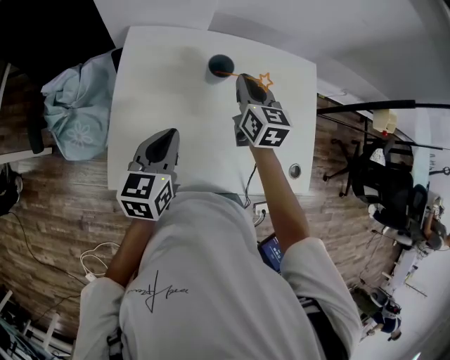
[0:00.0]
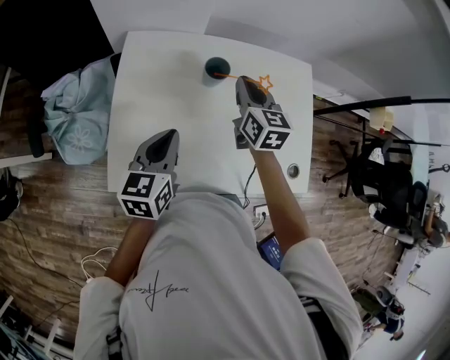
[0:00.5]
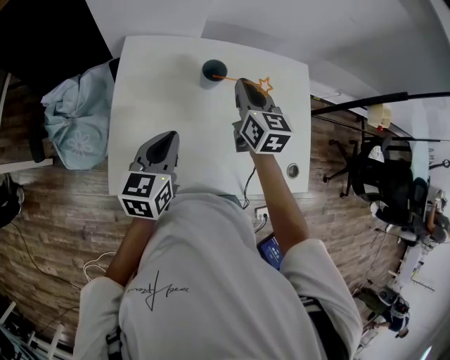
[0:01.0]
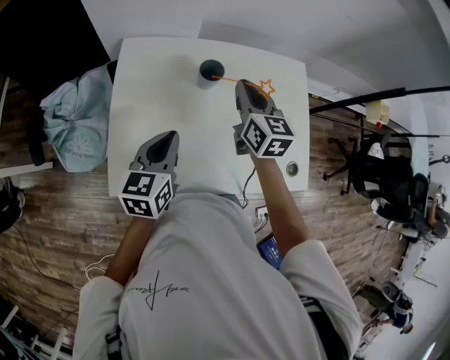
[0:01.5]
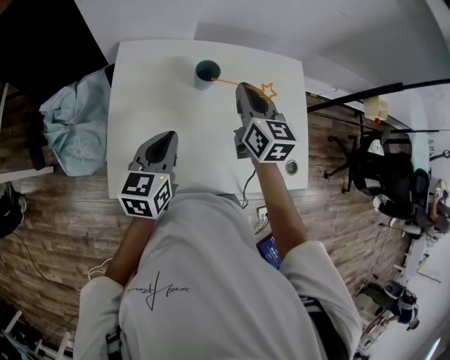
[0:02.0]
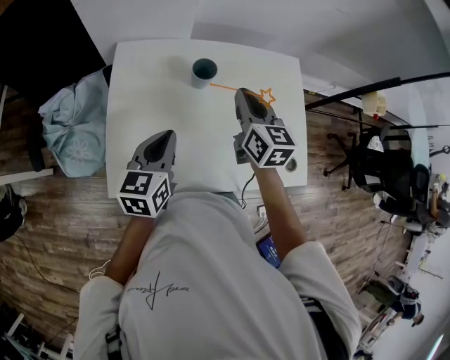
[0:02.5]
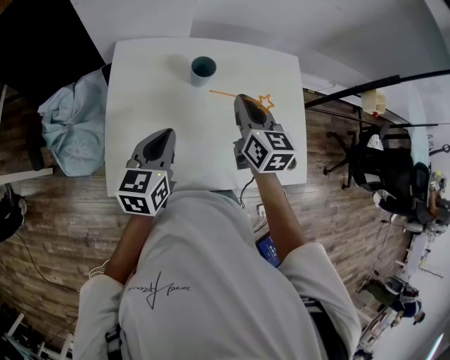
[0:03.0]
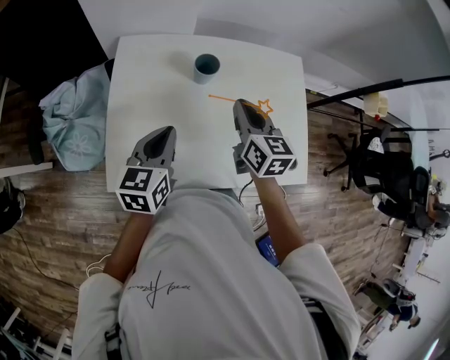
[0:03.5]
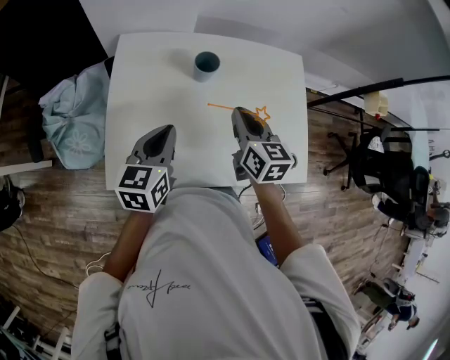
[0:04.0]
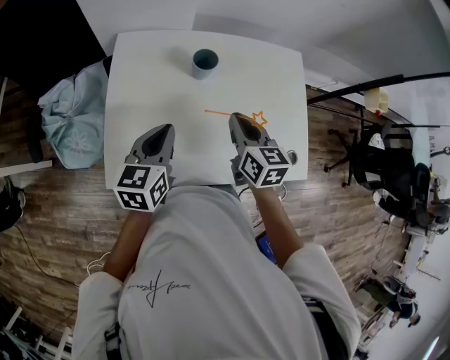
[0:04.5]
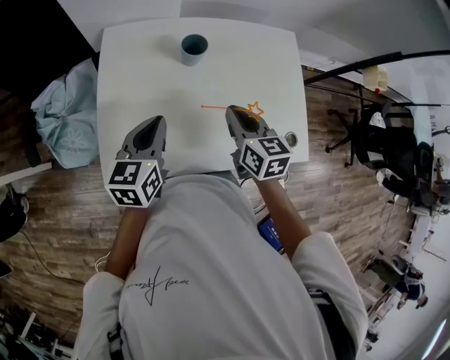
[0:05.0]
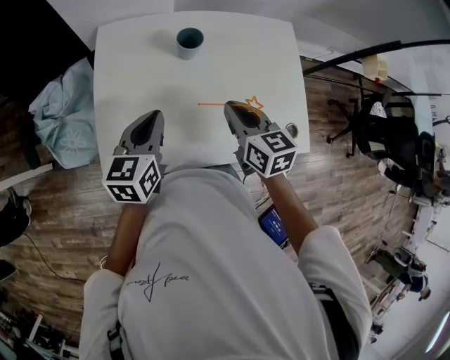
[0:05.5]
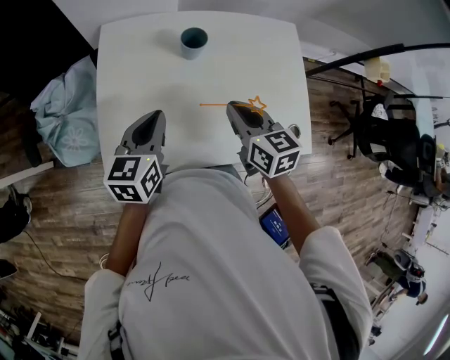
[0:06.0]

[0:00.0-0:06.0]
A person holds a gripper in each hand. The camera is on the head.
0:00.0 to 0:02.0: The right gripper moves upward, roughly 5 cm.
0:02.0 to 0:04.0: The right gripper travels backward by some 10 cm.
0:04.0 to 0:06.0: The right gripper heads backward, covering about 5 cm.

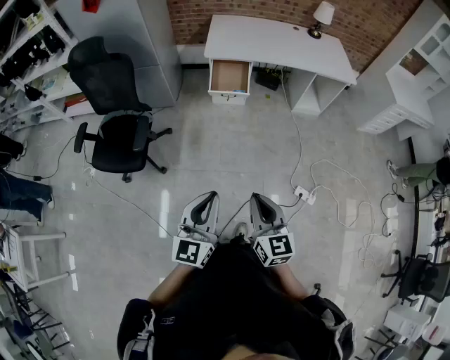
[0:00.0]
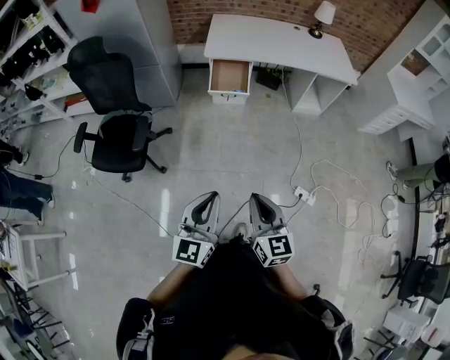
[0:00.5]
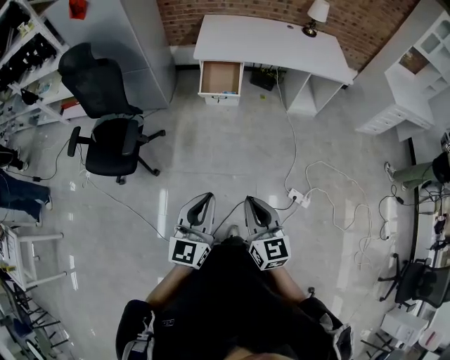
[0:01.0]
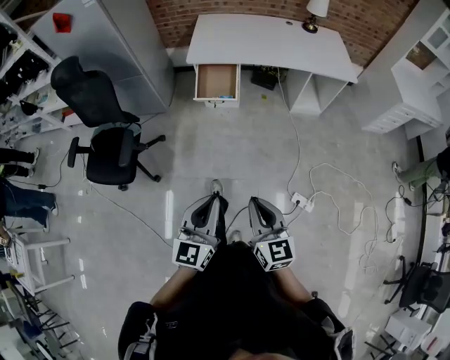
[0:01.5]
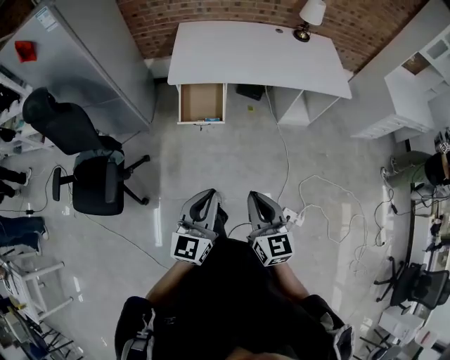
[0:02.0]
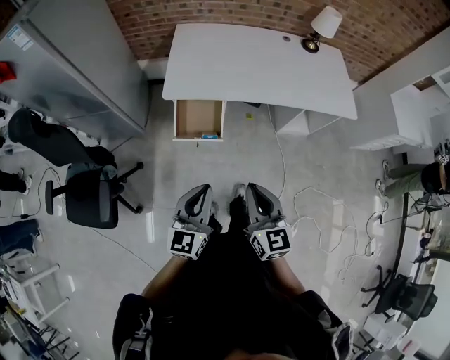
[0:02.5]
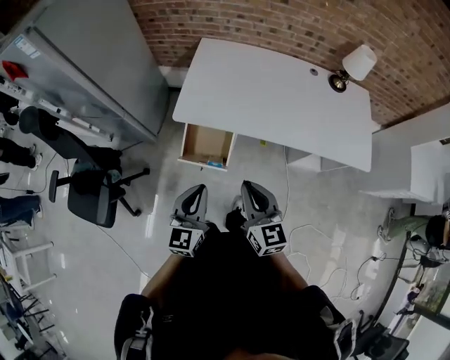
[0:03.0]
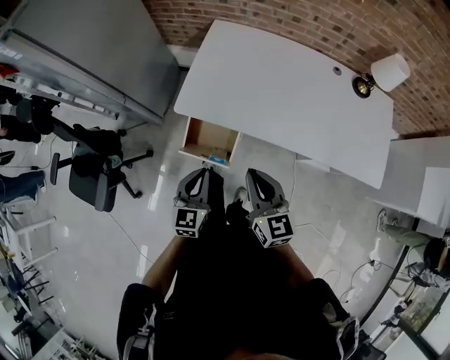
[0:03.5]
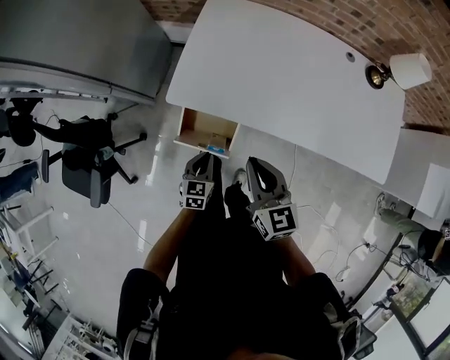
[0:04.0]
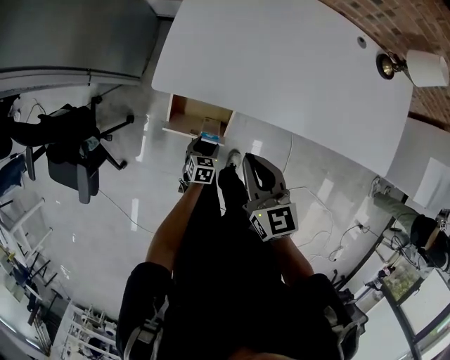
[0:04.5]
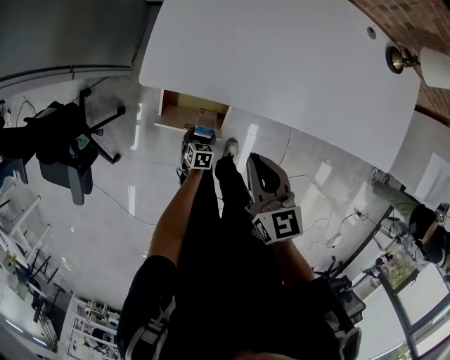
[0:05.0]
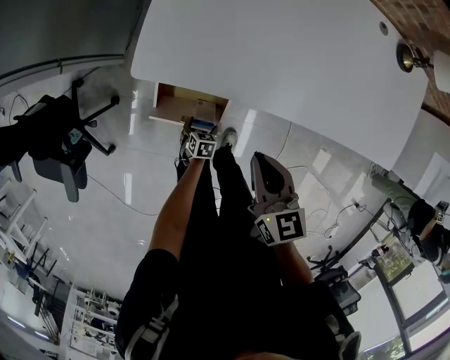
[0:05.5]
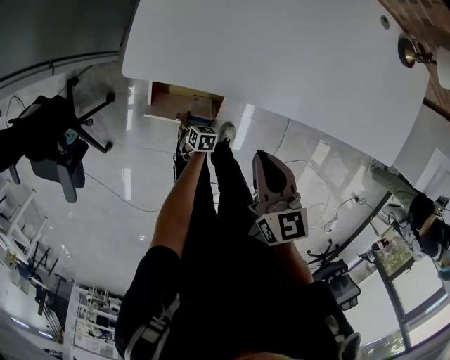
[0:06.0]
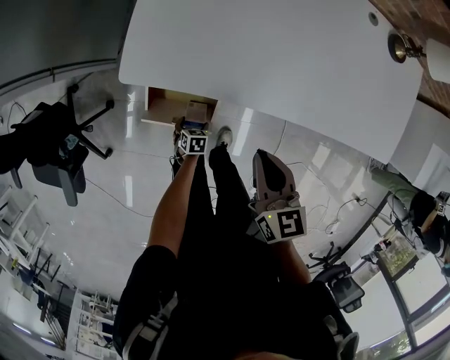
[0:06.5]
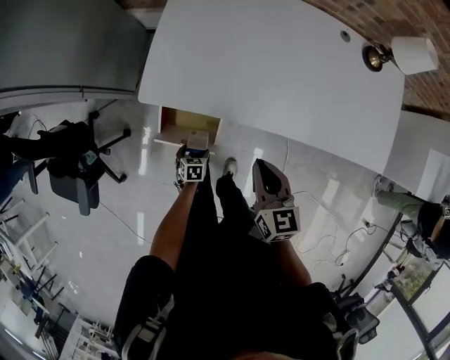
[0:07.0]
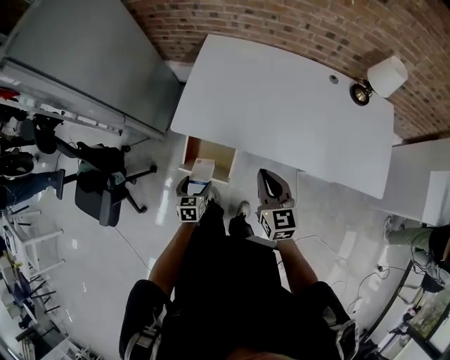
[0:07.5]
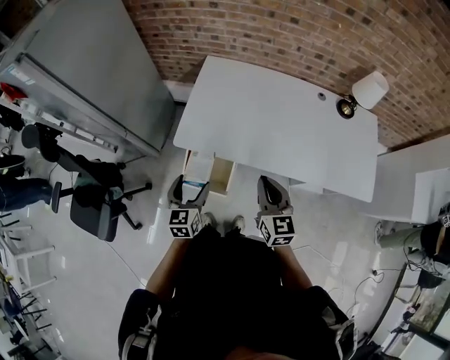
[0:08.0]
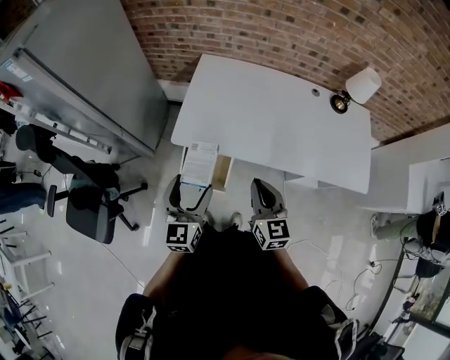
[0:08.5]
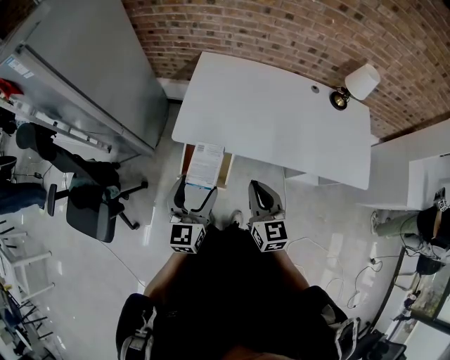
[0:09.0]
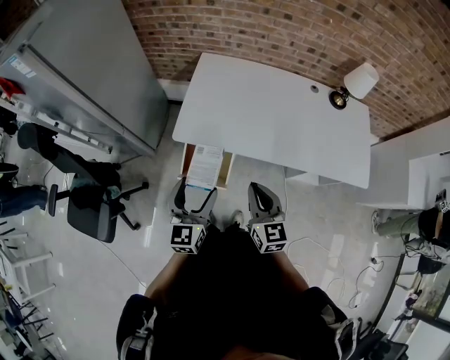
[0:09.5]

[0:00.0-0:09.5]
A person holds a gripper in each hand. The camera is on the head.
0:00.0 to 0:02.0: Both grippers travel together forward, some 30 cm.
0:02.0 to 0:04.0: The pair of grippers is taken forward, roughly 50 cm. The left gripper heads downward, covering some 30 cm, and angles its fingers downward, by approximately 30 degrees. The right gripper changes its angle by about 20 degrees.
0:04.0 to 0:05.5: The left gripper goes about 35 cm downward, points its fingers some 30 degrees further downward, and opens; the right gripper travels downward by approximately 15 cm.
0:05.5 to 0:07.5: The right gripper heads upward, covering some 15 cm. Meanwhile the left gripper goes roughly 35 cm upward, and swivels some 30 degrees.
0:07.5 to 0:09.5: The left gripper shifts roughly 30 cm upward, and tilts its fingers about 40 degrees upward. Meanwhile the right gripper shifts approximately 15 cm to the left, backward and upward.

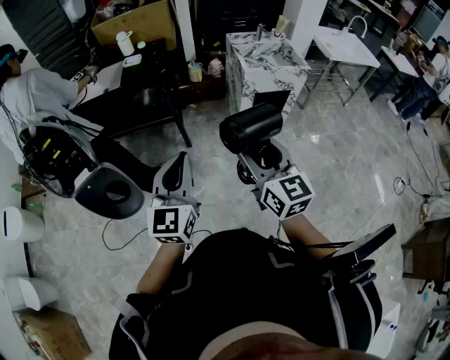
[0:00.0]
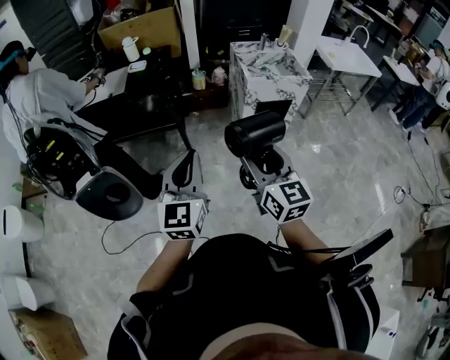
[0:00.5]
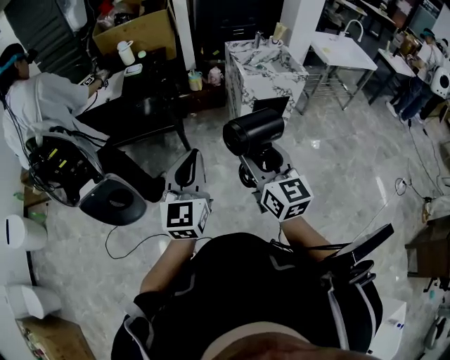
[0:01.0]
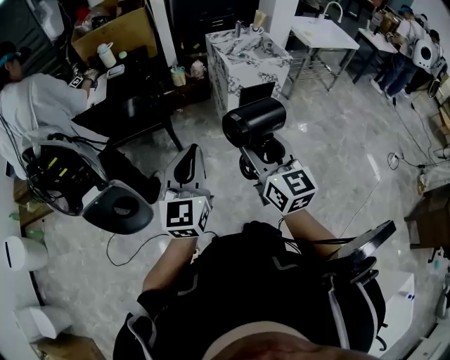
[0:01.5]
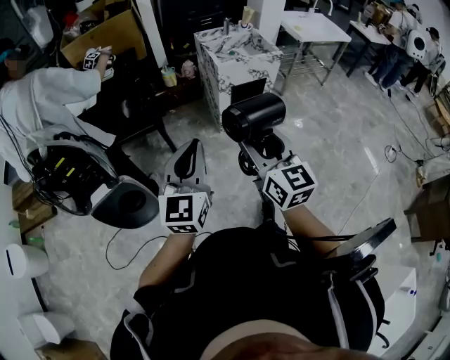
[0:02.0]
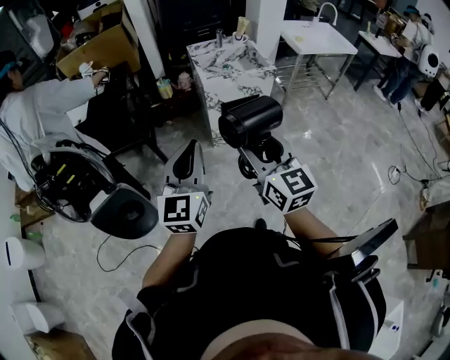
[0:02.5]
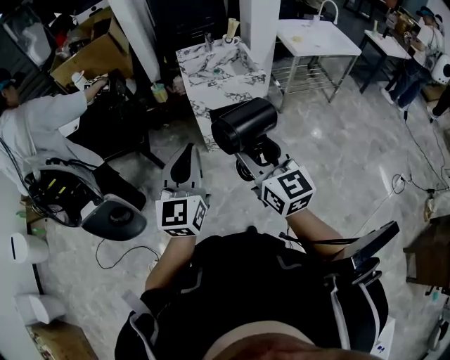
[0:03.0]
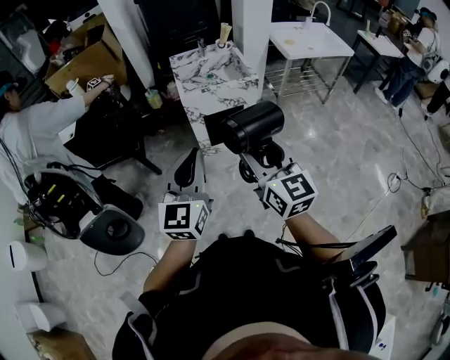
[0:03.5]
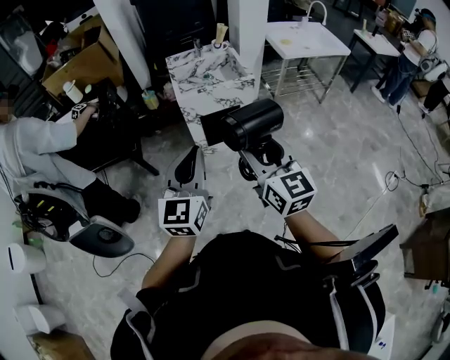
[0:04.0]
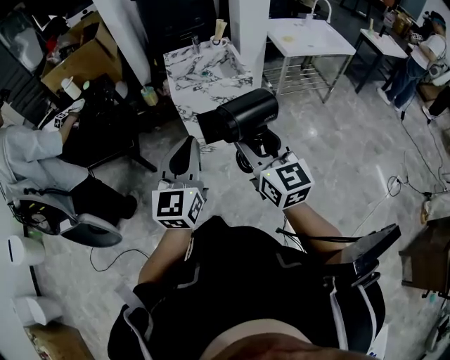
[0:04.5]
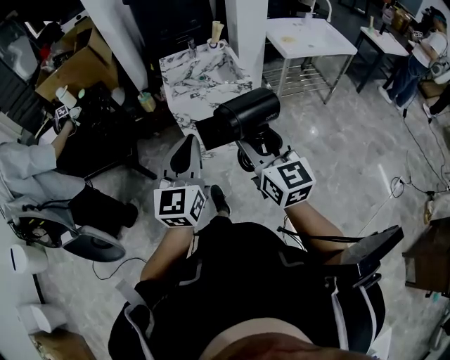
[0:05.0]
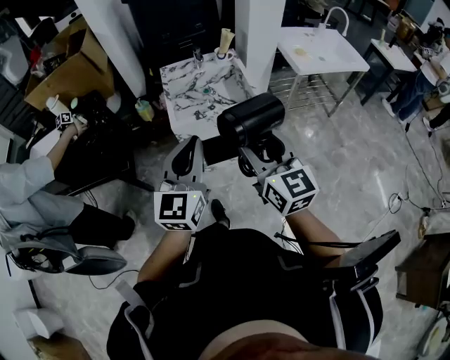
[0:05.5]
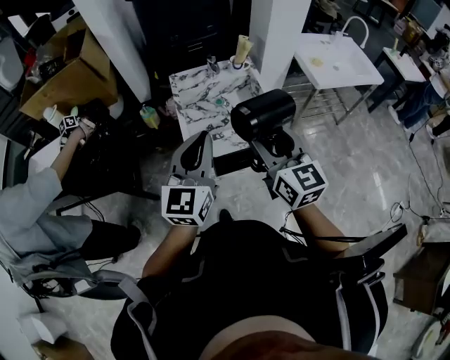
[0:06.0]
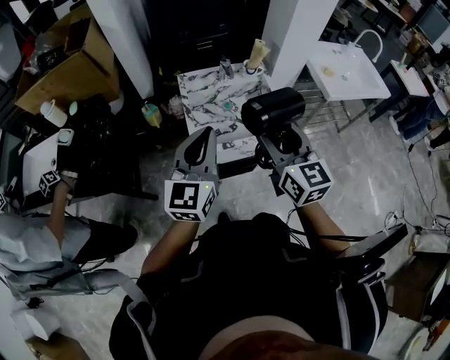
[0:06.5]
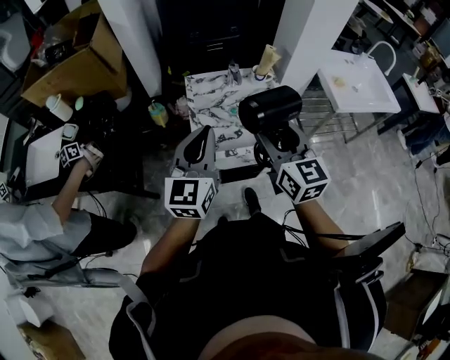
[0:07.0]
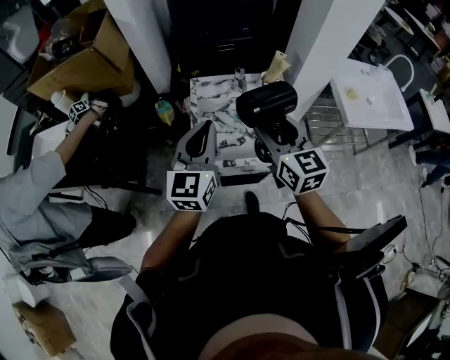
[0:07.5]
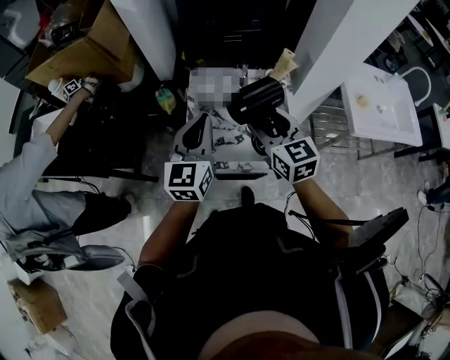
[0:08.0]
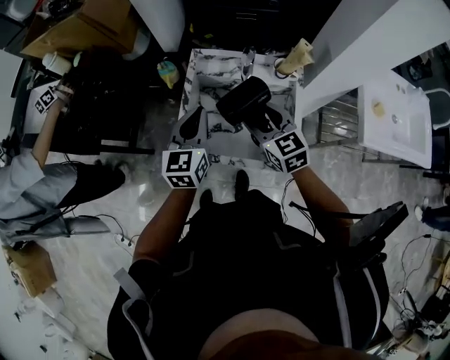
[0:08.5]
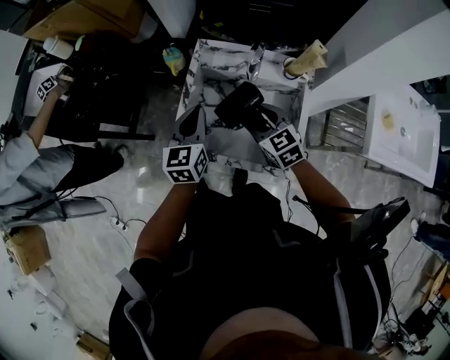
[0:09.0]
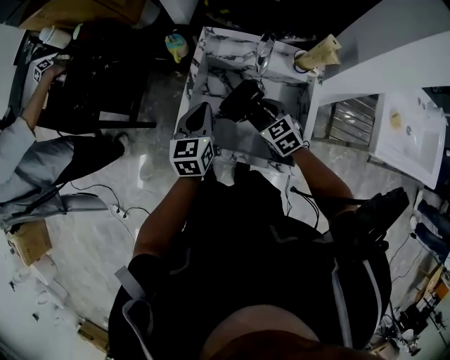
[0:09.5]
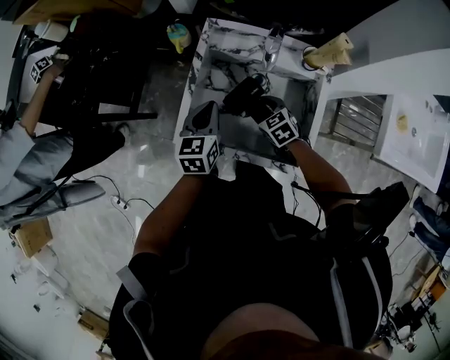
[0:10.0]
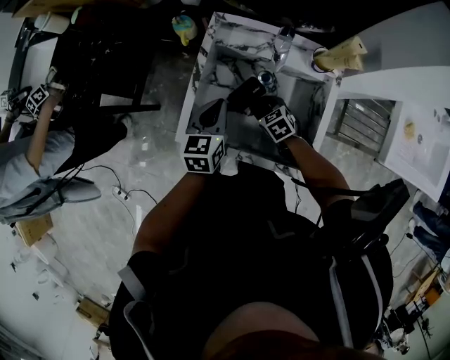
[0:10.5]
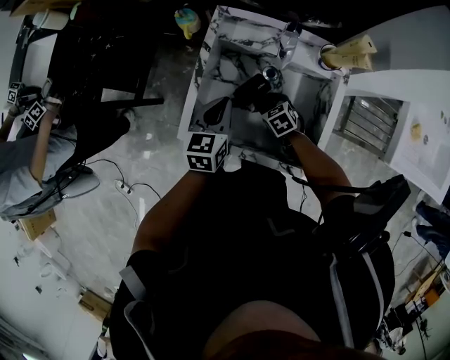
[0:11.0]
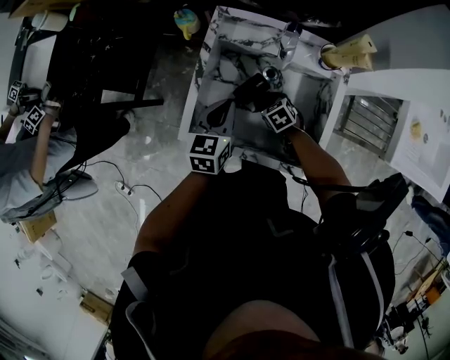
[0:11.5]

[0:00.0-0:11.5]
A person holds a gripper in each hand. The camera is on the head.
0:00.0 to 0:02.0: Both grippers travel together to the right, about 5 cm.
0:02.0 to 0:04.0: Both grippers travel together to the right, roughly 30 cm.
0:04.0 to 0:06.0: The grippers both shift forward by approximately 35 cm.
0:06.0 to 0:07.5: The two grippers go about 20 cm forward.
0:07.5 to 0:09.5: The two grippers go approximately 25 cm downward. The right gripper tilts its fingers roughly 30 degrees downward. Meanwhile the left gripper swivels approximately 40 degrees.
0:09.5 to 0:11.5: The right gripper shifts some 15 cm downward, and changes its angle by roughly 20 degrees, while the left gripper heads downward, covering some 5 cm.
